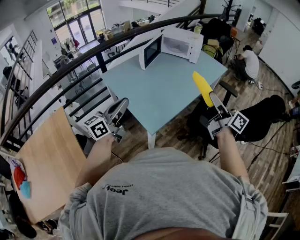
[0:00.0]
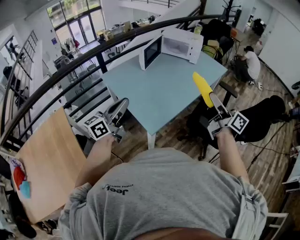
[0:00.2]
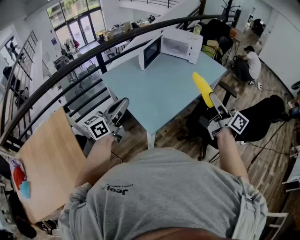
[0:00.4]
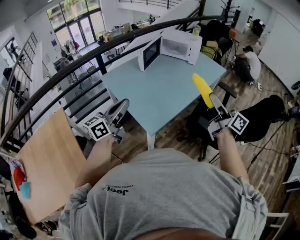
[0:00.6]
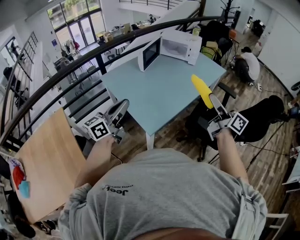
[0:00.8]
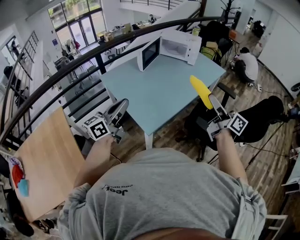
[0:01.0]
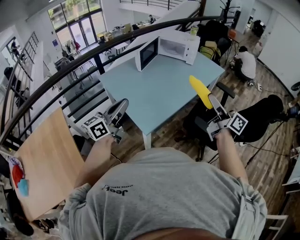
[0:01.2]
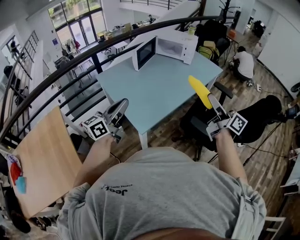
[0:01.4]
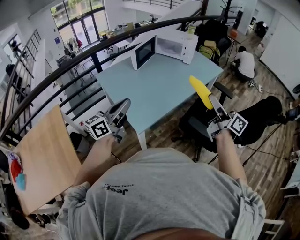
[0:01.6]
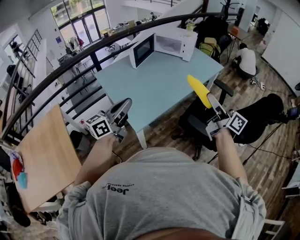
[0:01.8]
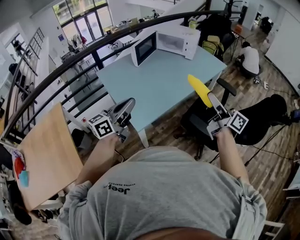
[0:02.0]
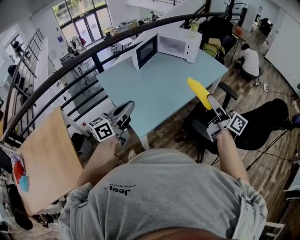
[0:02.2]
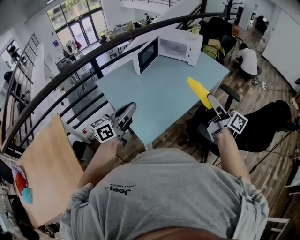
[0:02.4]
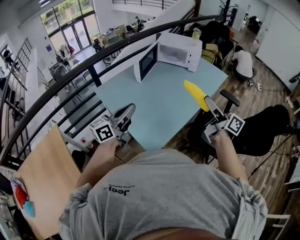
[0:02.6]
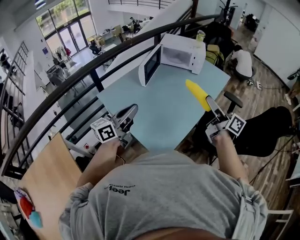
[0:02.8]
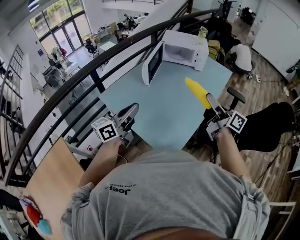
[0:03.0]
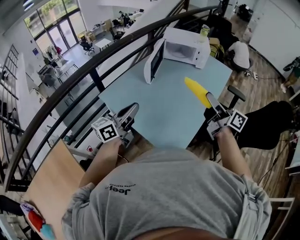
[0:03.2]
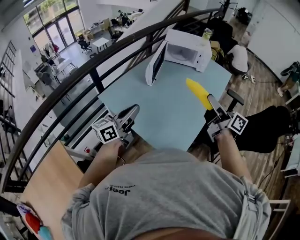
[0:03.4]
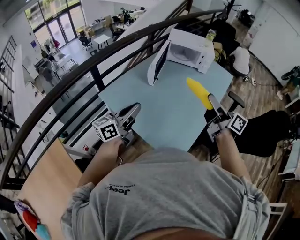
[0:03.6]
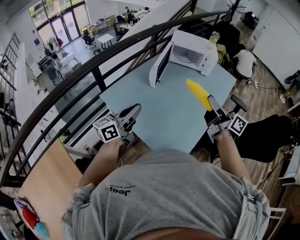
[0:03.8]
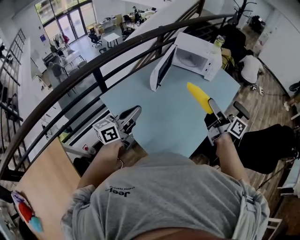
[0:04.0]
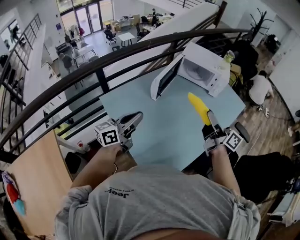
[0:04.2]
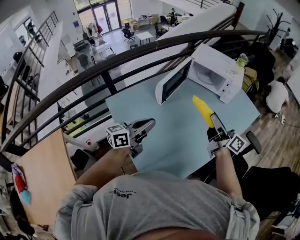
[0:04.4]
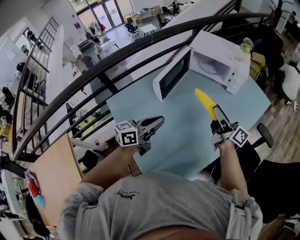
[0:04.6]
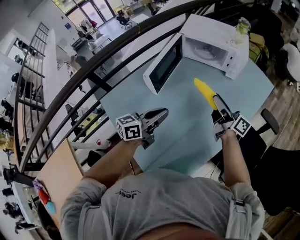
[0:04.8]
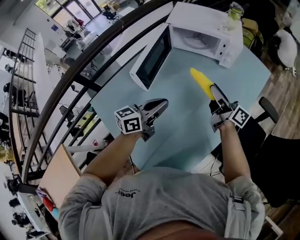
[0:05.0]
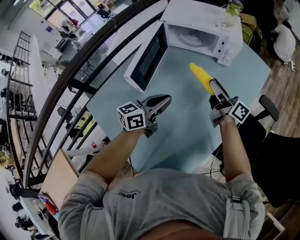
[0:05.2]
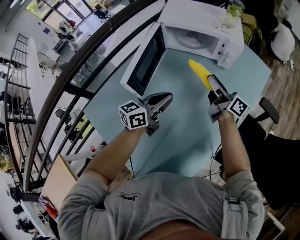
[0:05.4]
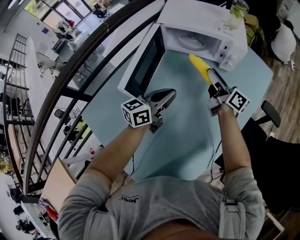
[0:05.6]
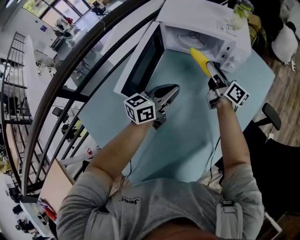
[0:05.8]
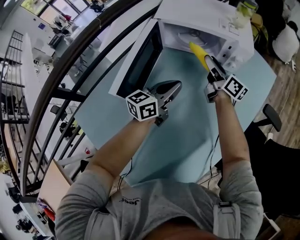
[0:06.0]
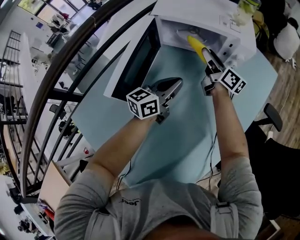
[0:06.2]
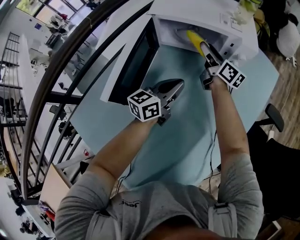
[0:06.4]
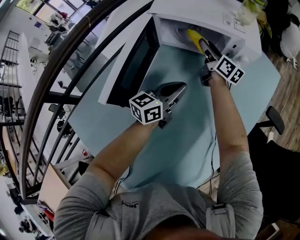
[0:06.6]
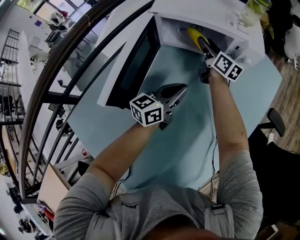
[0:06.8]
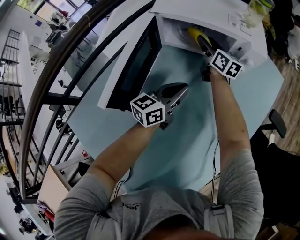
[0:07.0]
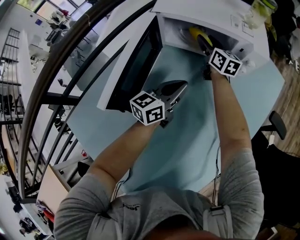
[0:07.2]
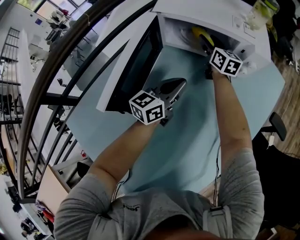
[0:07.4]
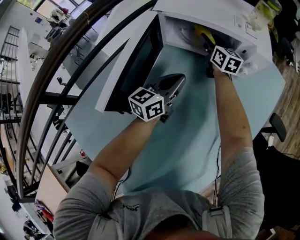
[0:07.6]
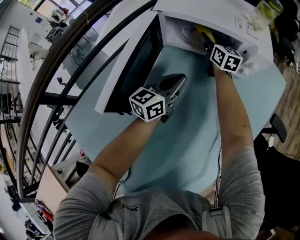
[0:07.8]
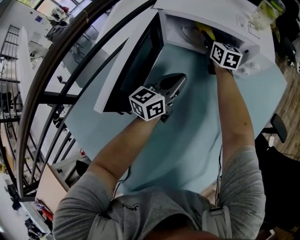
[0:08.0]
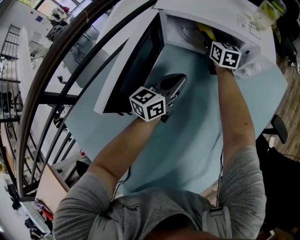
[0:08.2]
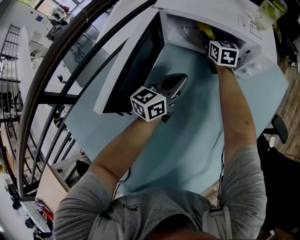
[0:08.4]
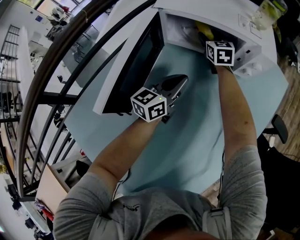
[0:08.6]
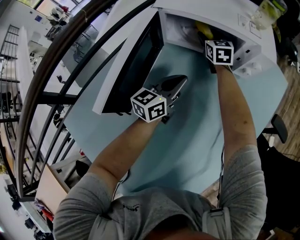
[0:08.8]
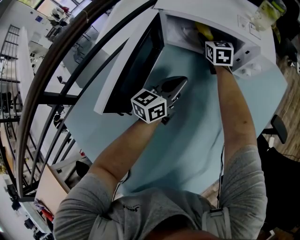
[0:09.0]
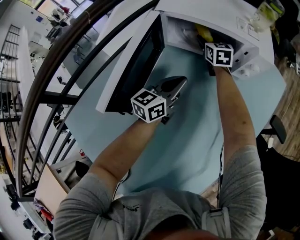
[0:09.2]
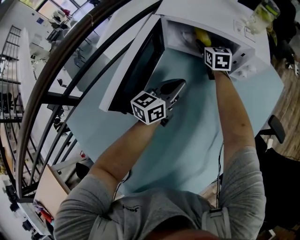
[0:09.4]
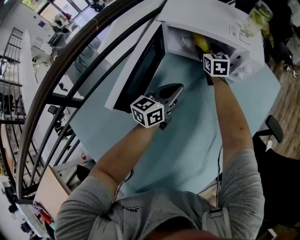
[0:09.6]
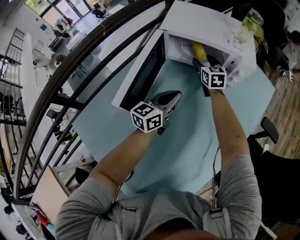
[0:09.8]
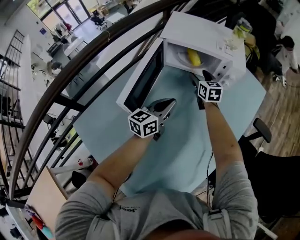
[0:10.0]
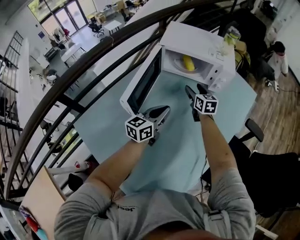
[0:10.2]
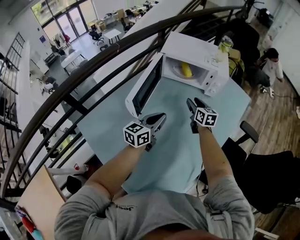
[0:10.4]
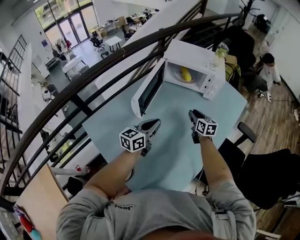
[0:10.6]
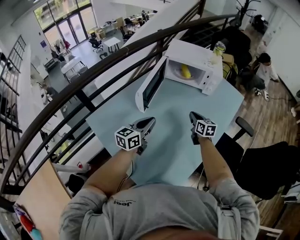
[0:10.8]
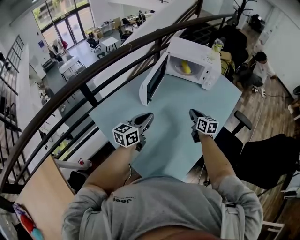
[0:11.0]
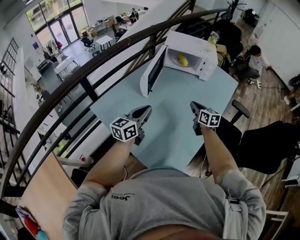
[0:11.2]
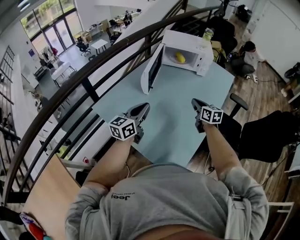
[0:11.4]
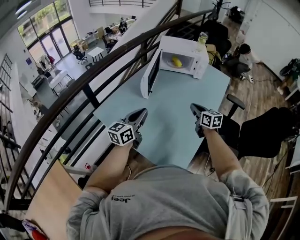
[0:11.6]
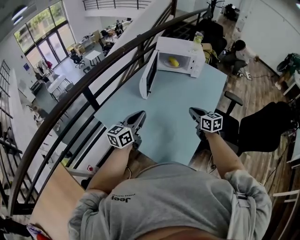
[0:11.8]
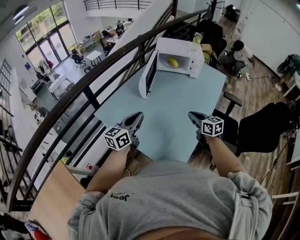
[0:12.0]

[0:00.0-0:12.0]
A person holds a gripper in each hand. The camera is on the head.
0:00.0 to 0:01.6: The two grippers go approximately 10 cm to the right.
0:01.6 to 0:03.0: The right gripper heads to the left and forward, covering approximately 25 cm. Meanwhile the left gripper goes approximately 25 cm forward and to the left.
0:03.0 to 0:04.4: The right gripper shifts roughly 25 cm forward. Meanwhile the left gripper is displaced forward and downward by approximately 20 cm.
0:04.4 to 0:06.0: The left gripper goes roughly 40 cm forward, downward and to the right, while the right gripper travels forward and downward by some 40 cm, and changes its angle by approximately 20 degrees.
0:06.0 to 0:07.6: The left gripper heads forward and downward, covering some 10 cm, while the right gripper heads forward and downward, covering about 15 cm, and swivels roughly 30 degrees.
0:07.6 to 0:09.0: The right gripper swivels about 20 degrees.
0:09.0 to 0:10.4: The right gripper moves backward, some 25 cm. Meanwhile the left gripper moves backward and upward, some 20 cm.
0:10.4 to 0:12.0: The right gripper goes some 40 cm backward, and closes up. The left gripper goes some 35 cm backward, to the left and upward.

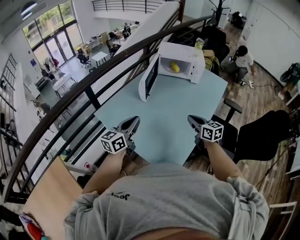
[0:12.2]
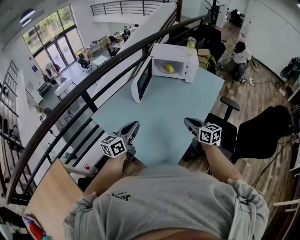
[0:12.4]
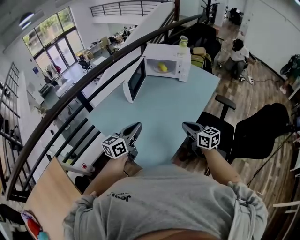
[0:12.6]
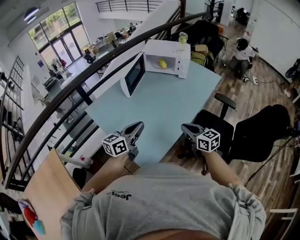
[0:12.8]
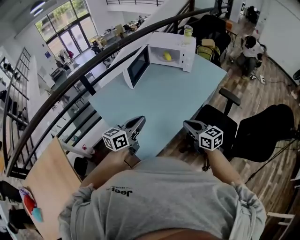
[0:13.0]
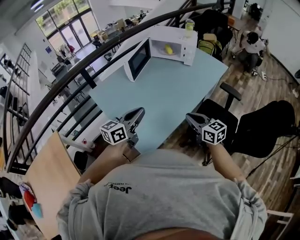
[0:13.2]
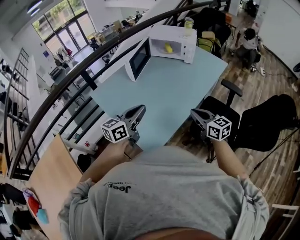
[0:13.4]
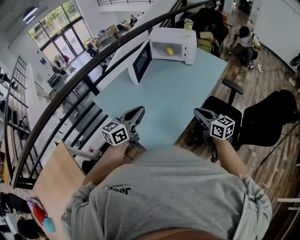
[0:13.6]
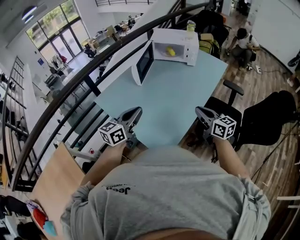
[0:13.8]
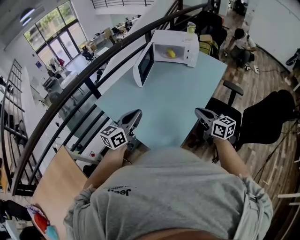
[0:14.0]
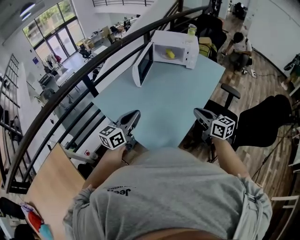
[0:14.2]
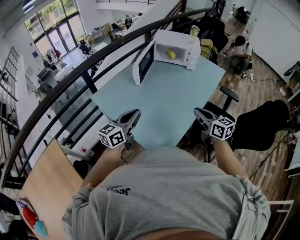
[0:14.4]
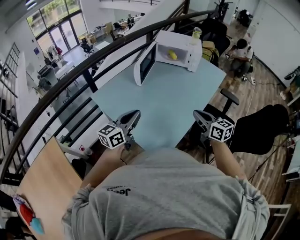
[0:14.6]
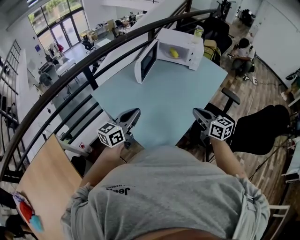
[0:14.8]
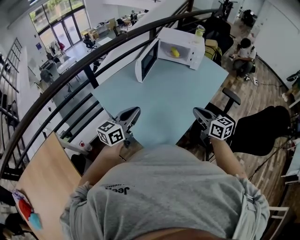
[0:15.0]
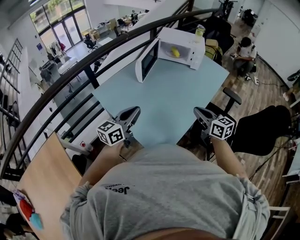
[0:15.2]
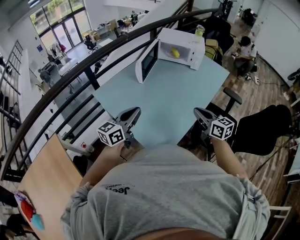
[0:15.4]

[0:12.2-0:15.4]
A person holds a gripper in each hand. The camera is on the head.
0:12.2 to 0:13.8: The left gripper goes approximately 15 cm to the right and backward. Meanwhile the right gripper moves backward and to the right, some 15 cm.
0:13.8 to 0:15.4: The grippers move only a little.

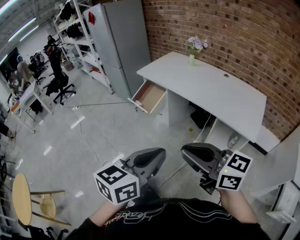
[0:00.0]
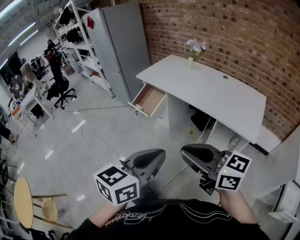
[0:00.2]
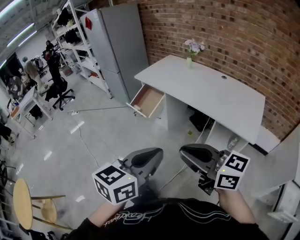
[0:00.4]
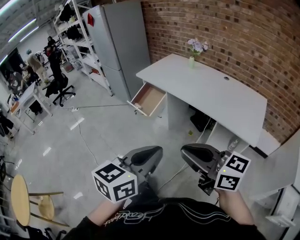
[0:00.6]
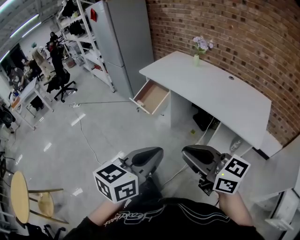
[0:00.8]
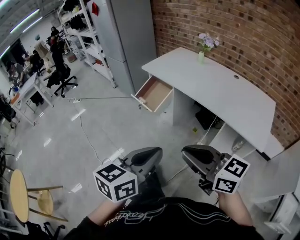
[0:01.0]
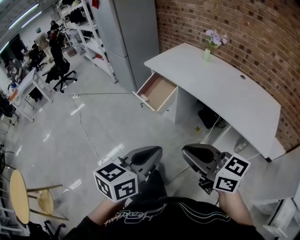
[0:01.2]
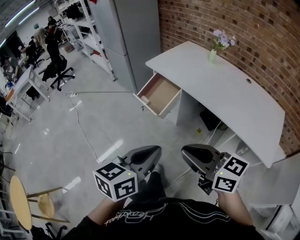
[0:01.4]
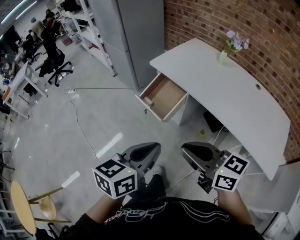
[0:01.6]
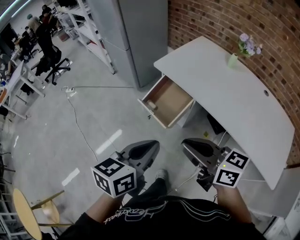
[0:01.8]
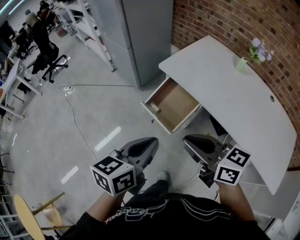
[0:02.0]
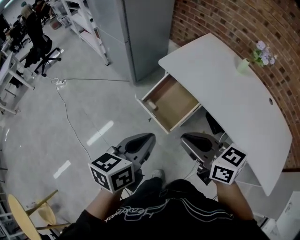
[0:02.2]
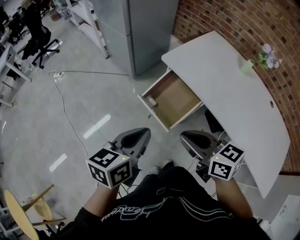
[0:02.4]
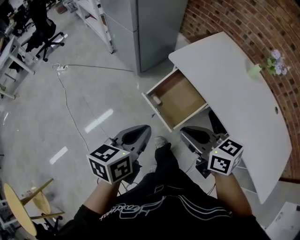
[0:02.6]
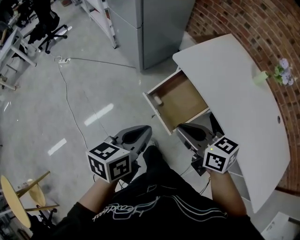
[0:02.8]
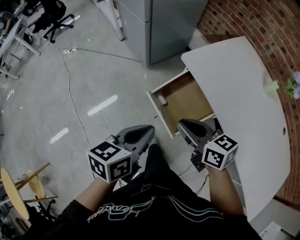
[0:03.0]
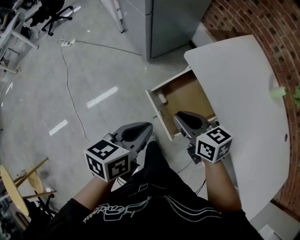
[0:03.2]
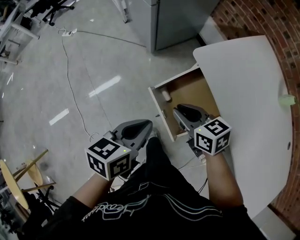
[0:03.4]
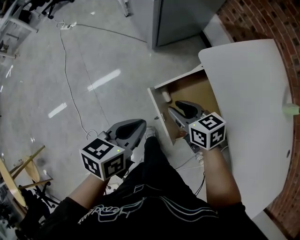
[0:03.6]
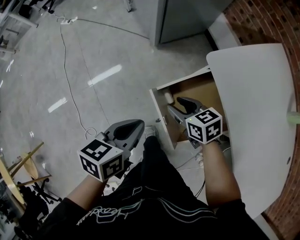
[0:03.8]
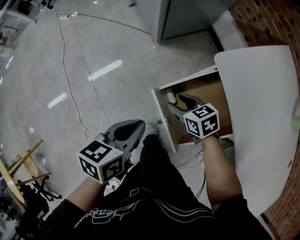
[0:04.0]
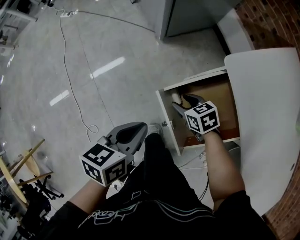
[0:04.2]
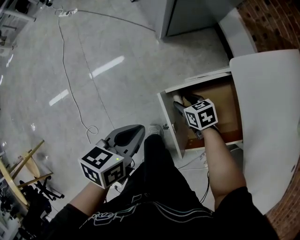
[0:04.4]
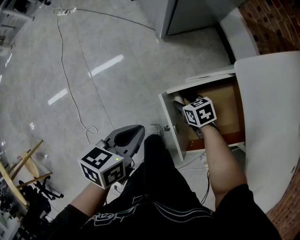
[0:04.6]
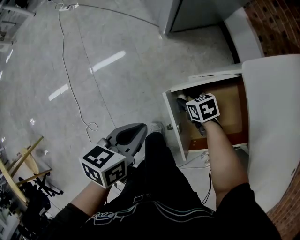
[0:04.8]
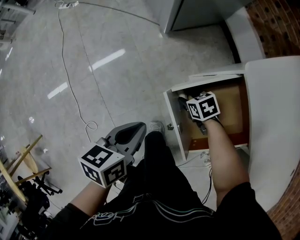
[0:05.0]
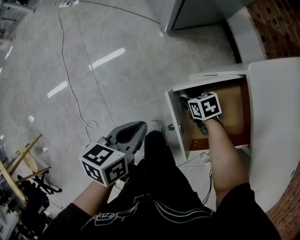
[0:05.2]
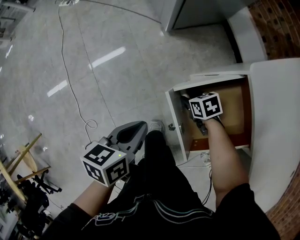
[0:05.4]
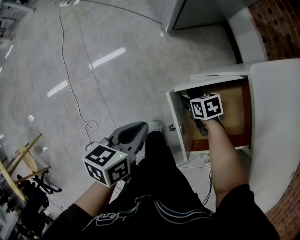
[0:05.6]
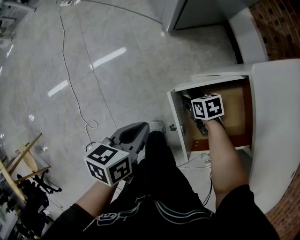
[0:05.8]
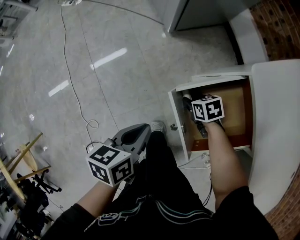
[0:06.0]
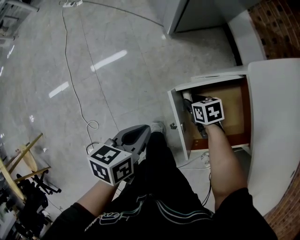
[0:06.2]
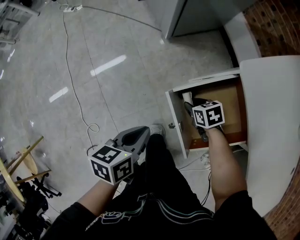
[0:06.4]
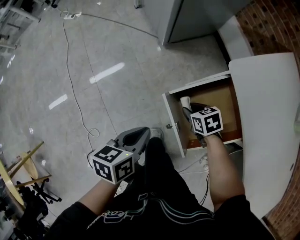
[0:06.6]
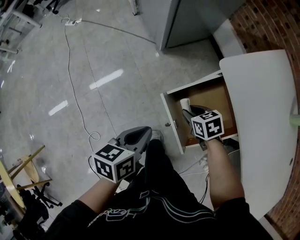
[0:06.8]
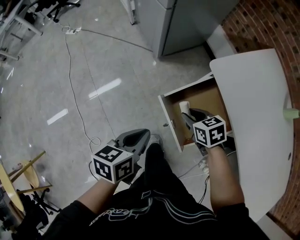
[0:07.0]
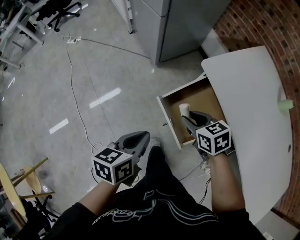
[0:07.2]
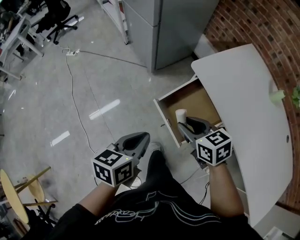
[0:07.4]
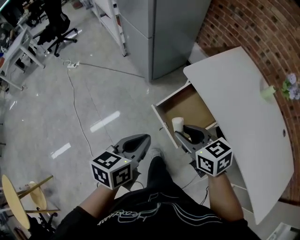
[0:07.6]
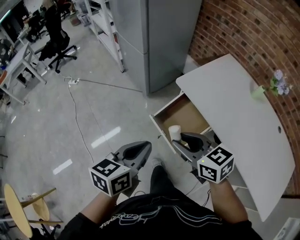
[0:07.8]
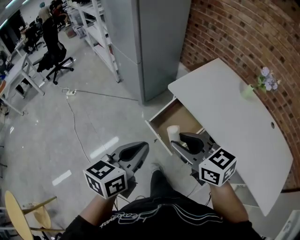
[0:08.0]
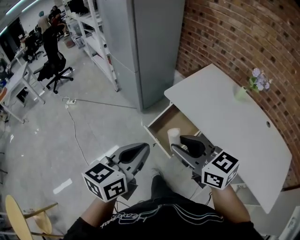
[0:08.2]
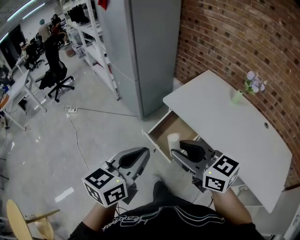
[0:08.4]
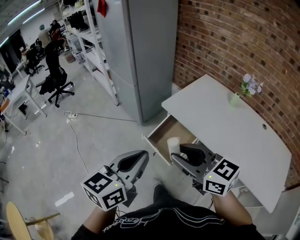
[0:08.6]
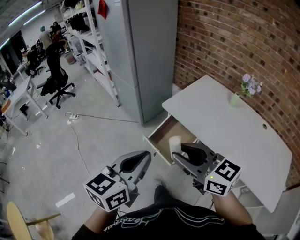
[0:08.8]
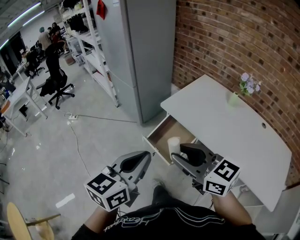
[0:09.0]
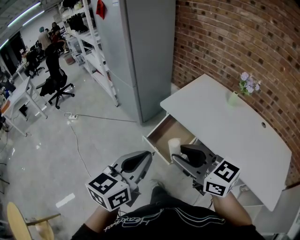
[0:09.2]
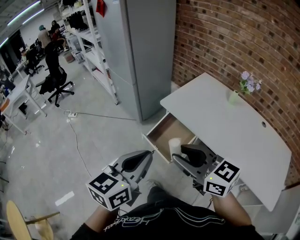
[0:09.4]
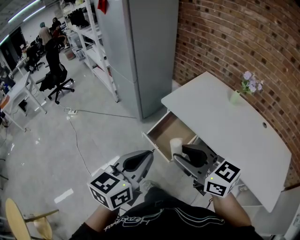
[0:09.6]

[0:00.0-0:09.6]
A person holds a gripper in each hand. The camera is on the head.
0:00.0 to 0:01.6: The grippers both shift forward by roughly 35 cm.
0:01.6 to 0:03.2: The pair of grippers is taken forward, some 40 cm. The two grippers go about 20 cm downward. The right gripper changes its angle by about 20 degrees; the left gripper rotates about 20 degrees.
0:03.2 to 0:04.8: The right gripper is displaced downward and forward by roughly 40 cm, points its fingers approximately 30 degrees further downward, and opens up, while the left gripper heads downward and forward, covering approximately 25 cm.
0:04.8 to 0:06.4: The grippers move only a little.
0:06.4 to 0:08.0: Both grippers travel together upward and backward, roughly 50 cm. The right gripper tips its fingers upward by some 40 degrees, while the left gripper turns by about 40 degrees.
0:08.0 to 0:09.6: The grippers both shift backward and upward by roughly 10 cm.
